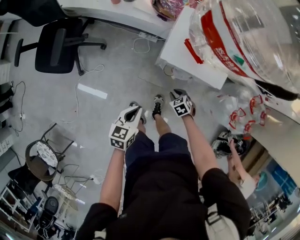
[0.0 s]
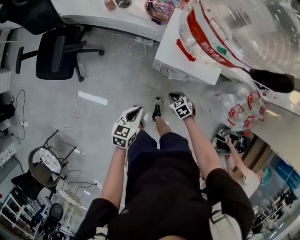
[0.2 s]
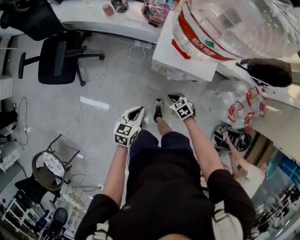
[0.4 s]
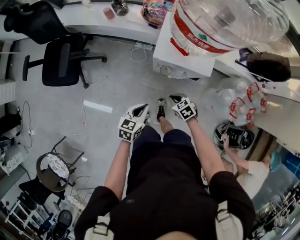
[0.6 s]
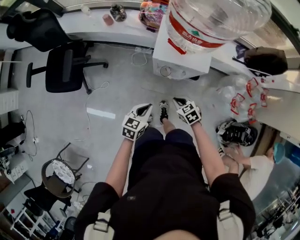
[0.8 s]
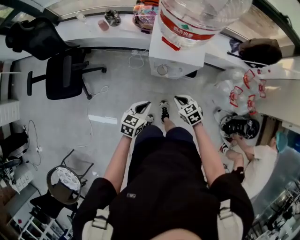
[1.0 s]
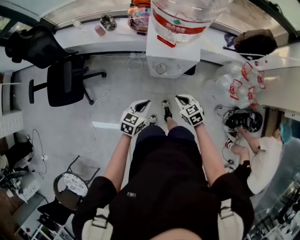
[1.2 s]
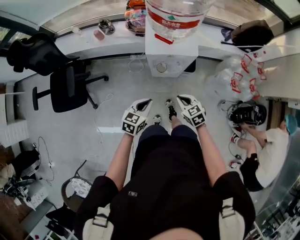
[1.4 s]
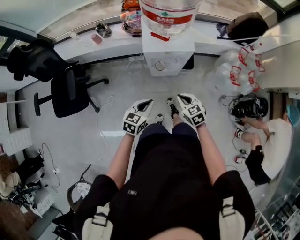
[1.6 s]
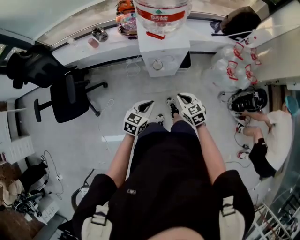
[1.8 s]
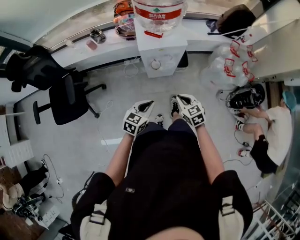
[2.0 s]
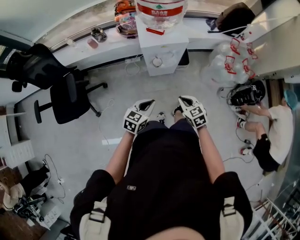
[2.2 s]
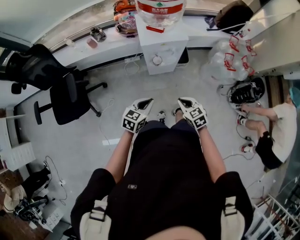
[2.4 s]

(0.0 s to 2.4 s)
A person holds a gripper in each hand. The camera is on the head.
0.0 s - 1.2 s: The right gripper shifts approximately 25 cm upward, and rotates approximately 20 degrees; the left gripper heads upward, covering approximately 10 cm, and swivels approximately 30 degrees.
1.2 s - 2.4 s: Both grippers move backward, some 15 cm.

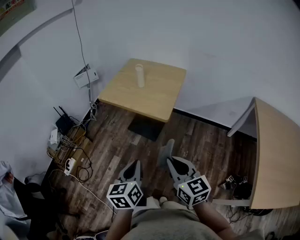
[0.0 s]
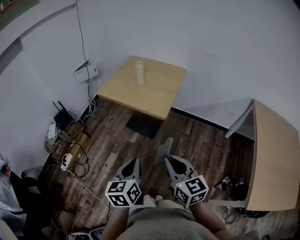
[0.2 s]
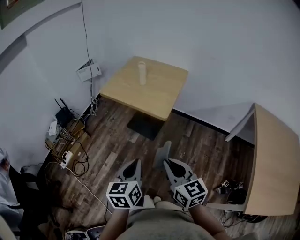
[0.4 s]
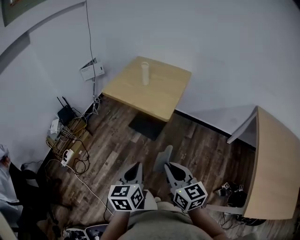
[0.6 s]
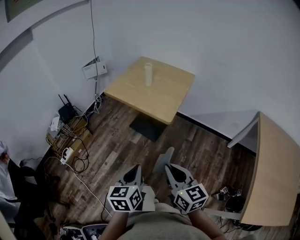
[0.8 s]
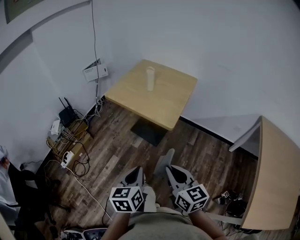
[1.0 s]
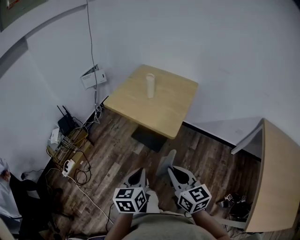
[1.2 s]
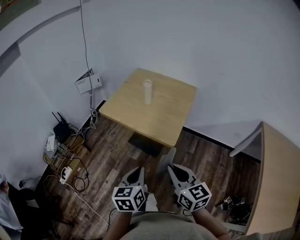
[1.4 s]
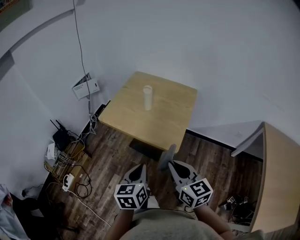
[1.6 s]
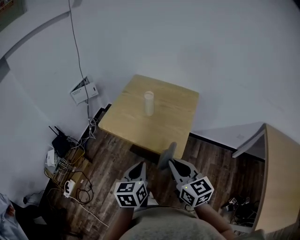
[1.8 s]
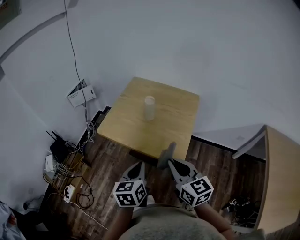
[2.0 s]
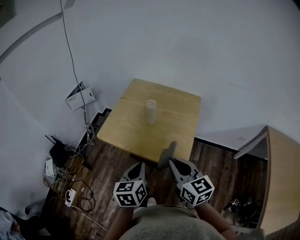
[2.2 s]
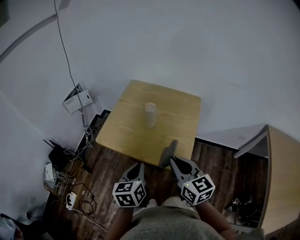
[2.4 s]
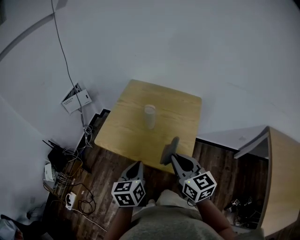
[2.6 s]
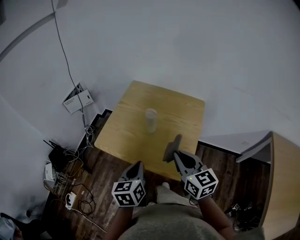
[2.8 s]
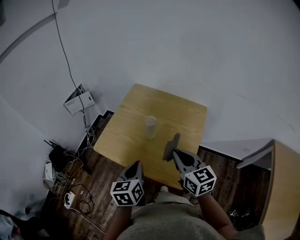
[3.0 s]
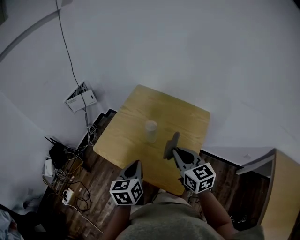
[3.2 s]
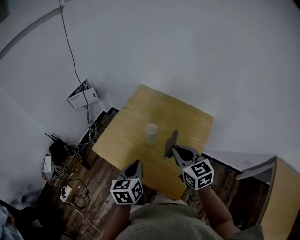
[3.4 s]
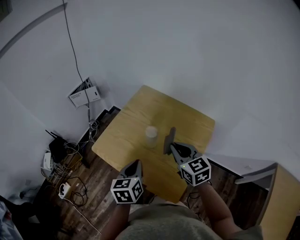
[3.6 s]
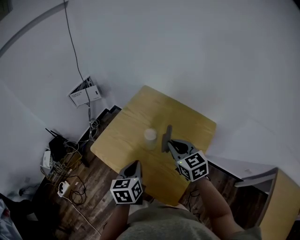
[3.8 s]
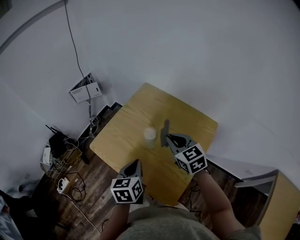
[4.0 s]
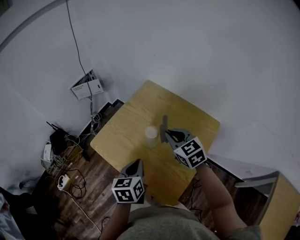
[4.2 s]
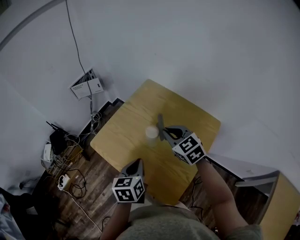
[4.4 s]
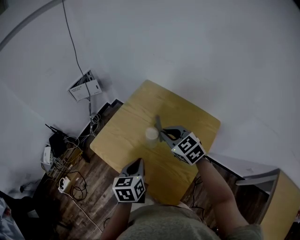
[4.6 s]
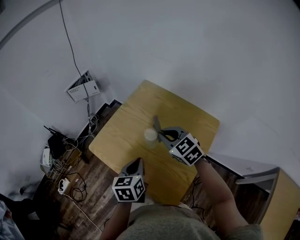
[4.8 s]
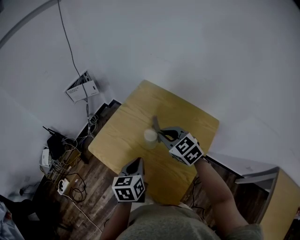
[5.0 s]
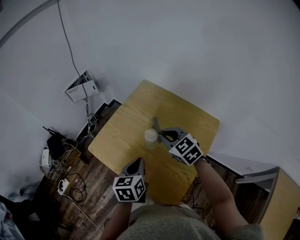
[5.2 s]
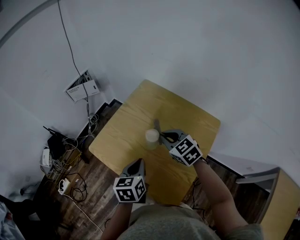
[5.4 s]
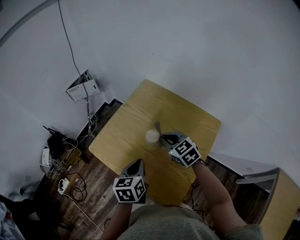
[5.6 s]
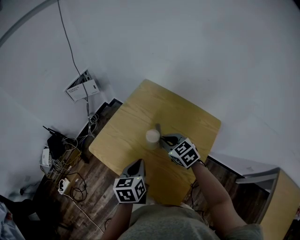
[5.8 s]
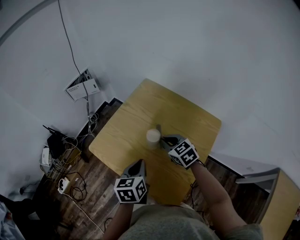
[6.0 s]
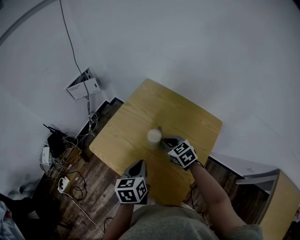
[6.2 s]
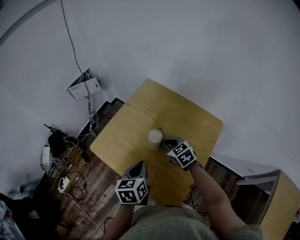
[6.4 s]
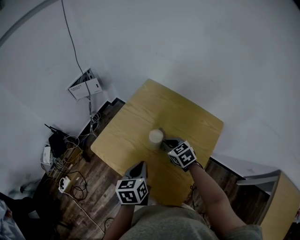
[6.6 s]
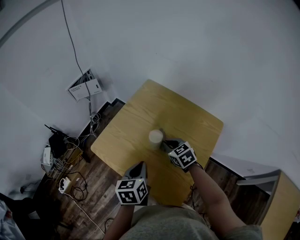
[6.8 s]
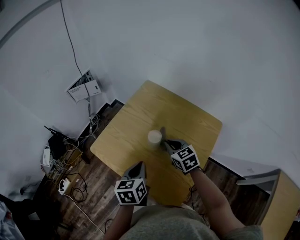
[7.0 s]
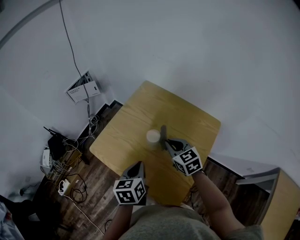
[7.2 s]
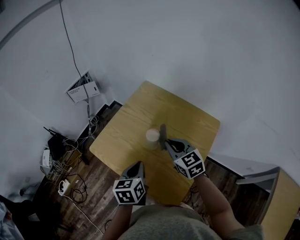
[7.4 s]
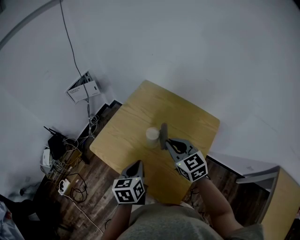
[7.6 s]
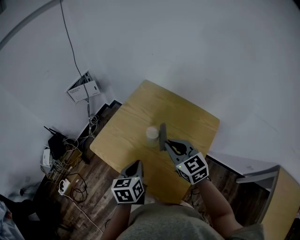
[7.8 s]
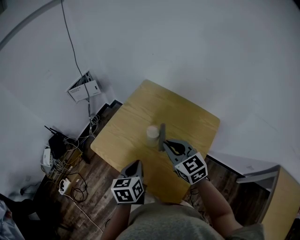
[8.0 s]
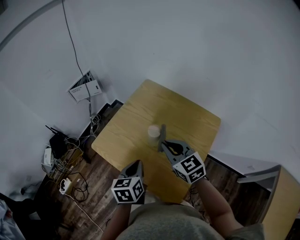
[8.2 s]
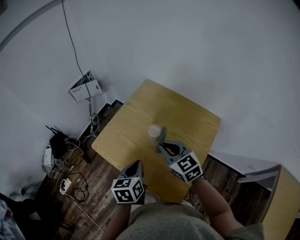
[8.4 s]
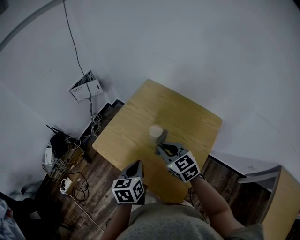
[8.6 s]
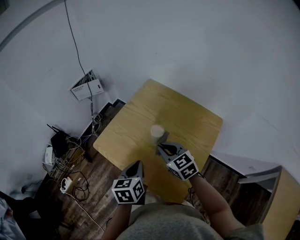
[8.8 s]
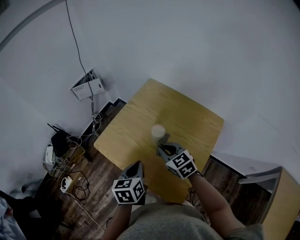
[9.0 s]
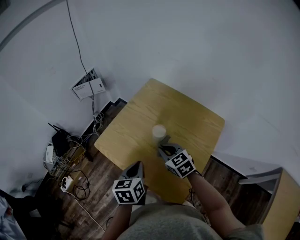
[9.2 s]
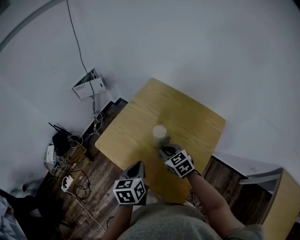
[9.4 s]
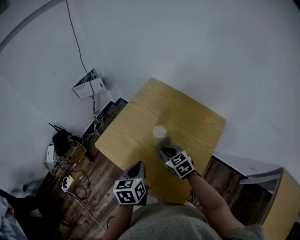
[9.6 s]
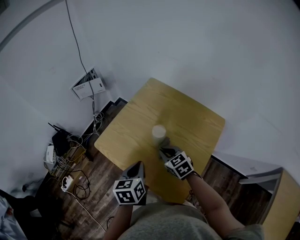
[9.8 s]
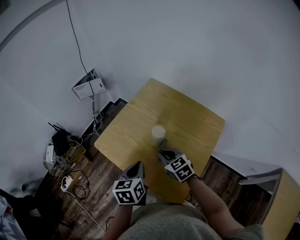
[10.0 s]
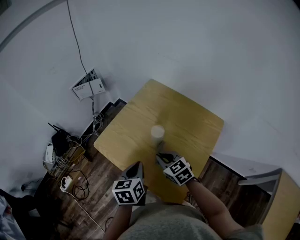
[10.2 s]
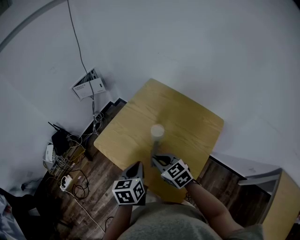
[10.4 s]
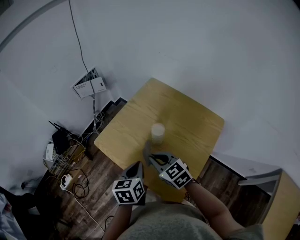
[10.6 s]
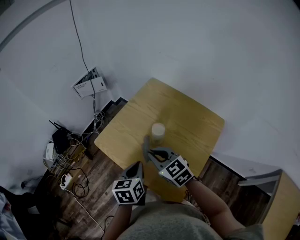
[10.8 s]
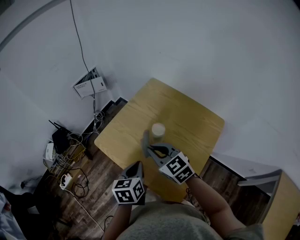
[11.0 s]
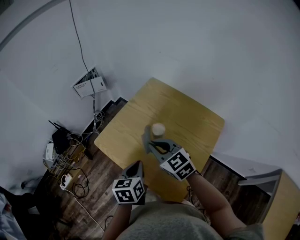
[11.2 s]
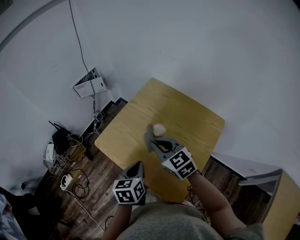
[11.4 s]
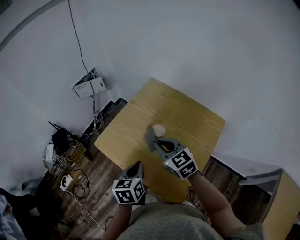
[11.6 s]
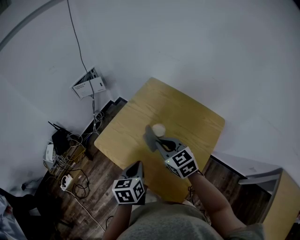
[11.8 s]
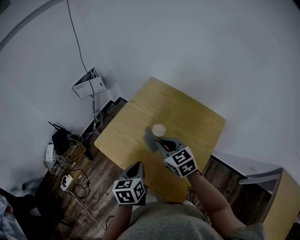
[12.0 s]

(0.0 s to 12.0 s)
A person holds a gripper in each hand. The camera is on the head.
0.0 s - 1.6 s: Both grippers travel together forward, roughly 20 cm.
1.6 s - 3.0 s: The grippers both shift forward by approximately 25 cm.
3.0 s - 4.4 s: The left gripper is displaced forward by about 10 cm; the right gripper moves forward, some 20 cm, and changes its angle by approximately 40 degrees.
4.4 s - 6.0 s: The right gripper goes approximately 10 cm downward.
6.0 s - 7.6 s: The right gripper is displaced upward by about 10 cm.
7.6 s - 9.0 s: The right gripper travels downward and to the left by about 10 cm.
9.0 s - 10.4 s: The right gripper ends up approximately 5 cm from where it was.
10.4 s - 12.0 s: The right gripper heads forward, covering approximately 5 cm.

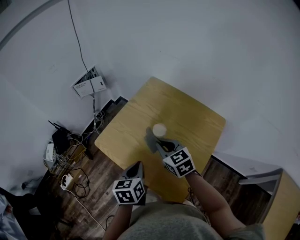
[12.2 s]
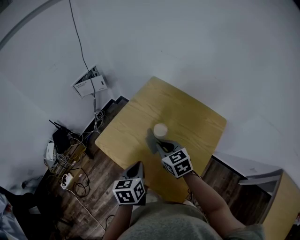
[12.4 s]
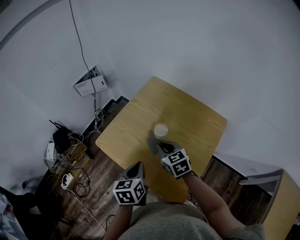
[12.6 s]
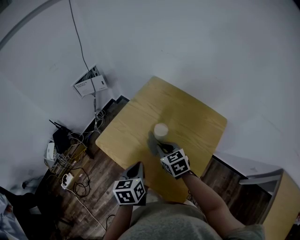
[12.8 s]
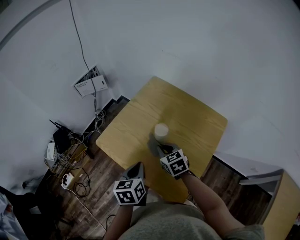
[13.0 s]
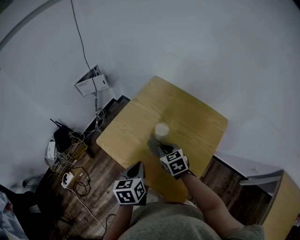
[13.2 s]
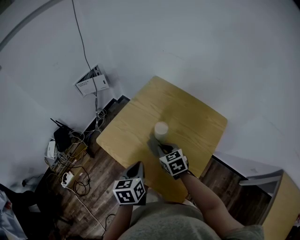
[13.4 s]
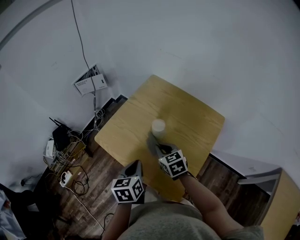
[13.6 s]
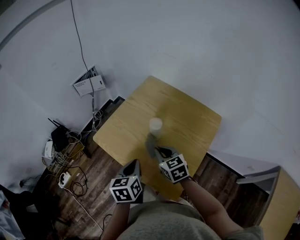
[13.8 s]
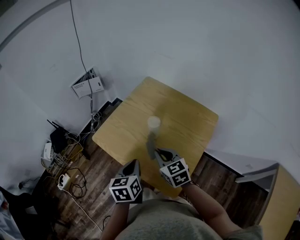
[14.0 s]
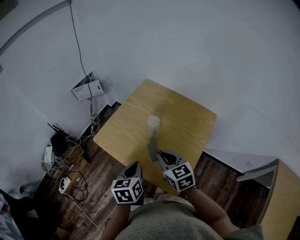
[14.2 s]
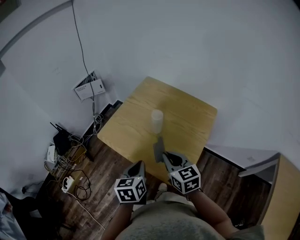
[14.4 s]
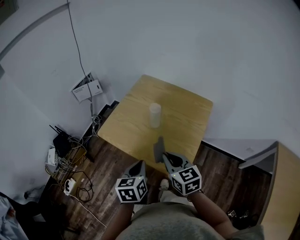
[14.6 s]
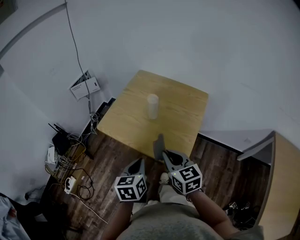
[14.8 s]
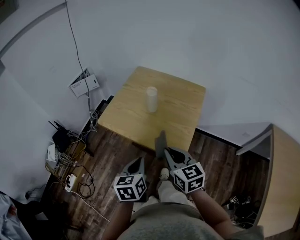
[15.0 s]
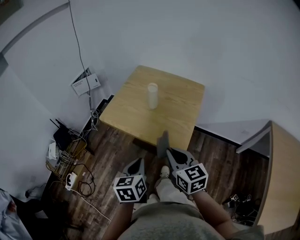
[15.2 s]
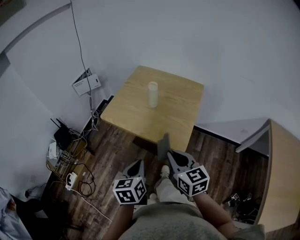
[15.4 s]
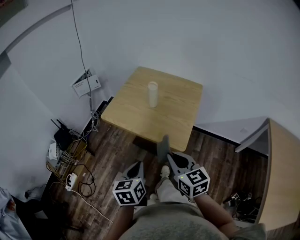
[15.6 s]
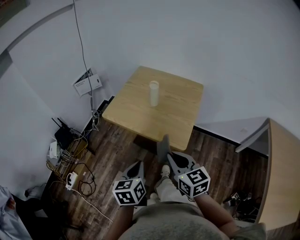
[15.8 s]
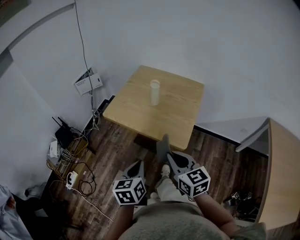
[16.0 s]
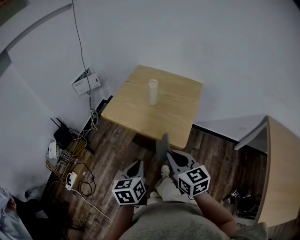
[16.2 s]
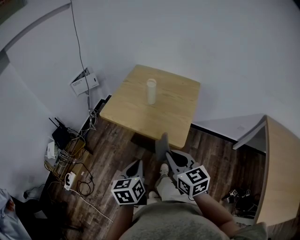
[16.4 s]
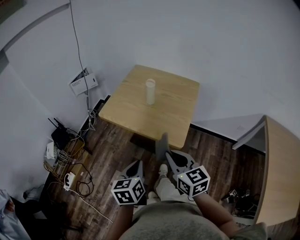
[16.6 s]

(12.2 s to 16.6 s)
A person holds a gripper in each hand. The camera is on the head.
12.2 s - 13.6 s: The right gripper is displaced downward by roughly 5 cm.
13.6 s - 15.2 s: The left gripper heads backward, covering approximately 20 cm. Meanwhile the right gripper shifts approximately 30 cm backward and upward, and swivels approximately 30 degrees.
15.2 s - 16.6 s: The right gripper is displaced backward by roughly 5 cm. The left gripper moves some 5 cm.

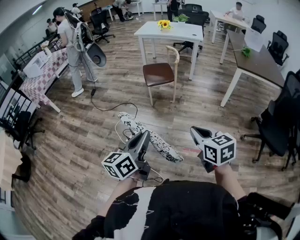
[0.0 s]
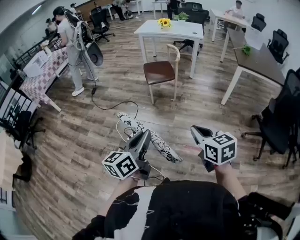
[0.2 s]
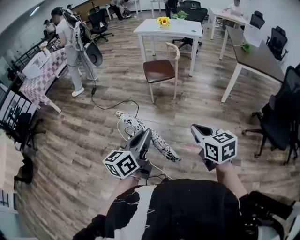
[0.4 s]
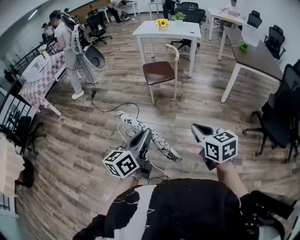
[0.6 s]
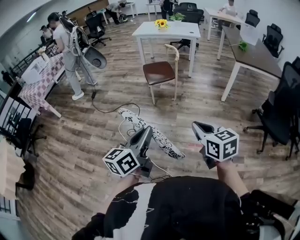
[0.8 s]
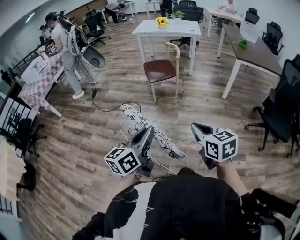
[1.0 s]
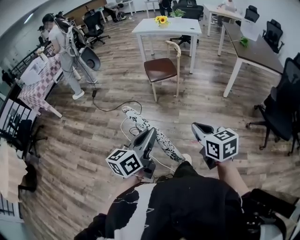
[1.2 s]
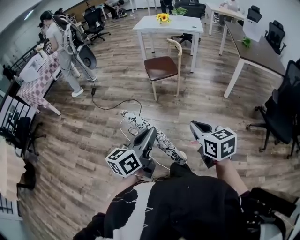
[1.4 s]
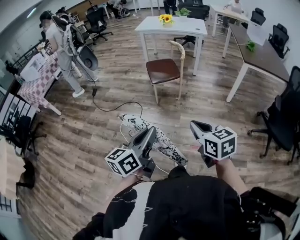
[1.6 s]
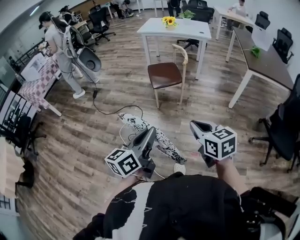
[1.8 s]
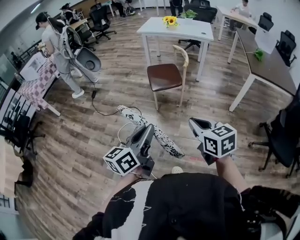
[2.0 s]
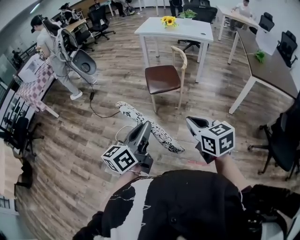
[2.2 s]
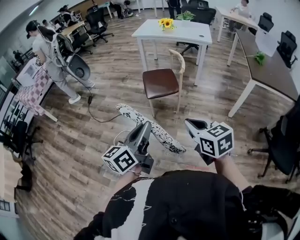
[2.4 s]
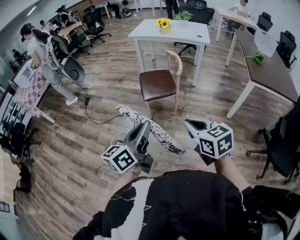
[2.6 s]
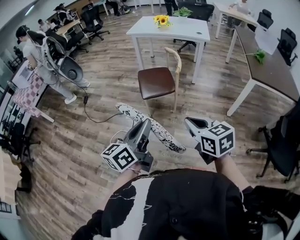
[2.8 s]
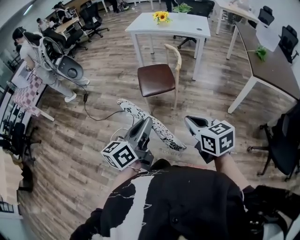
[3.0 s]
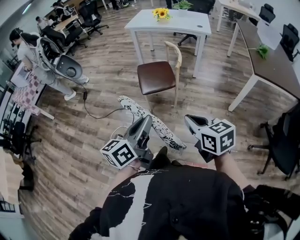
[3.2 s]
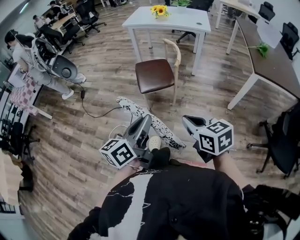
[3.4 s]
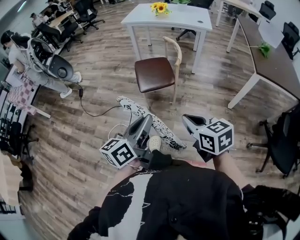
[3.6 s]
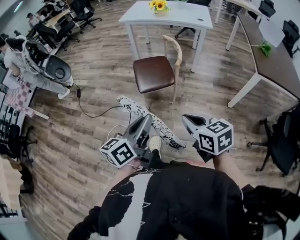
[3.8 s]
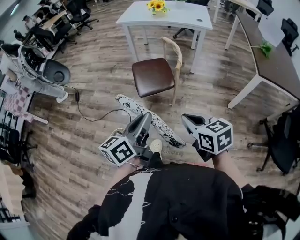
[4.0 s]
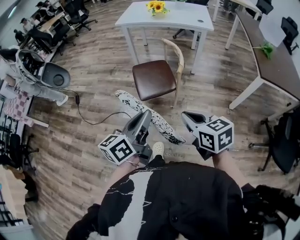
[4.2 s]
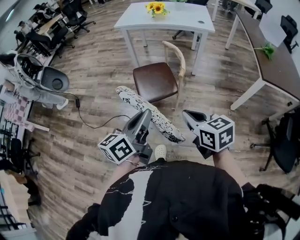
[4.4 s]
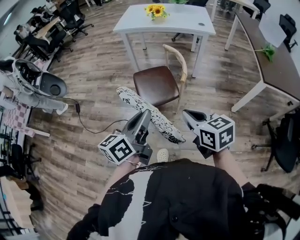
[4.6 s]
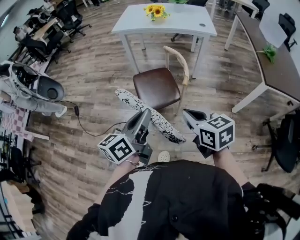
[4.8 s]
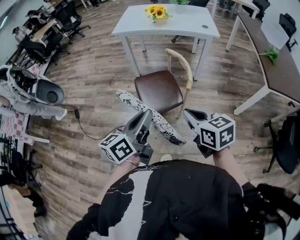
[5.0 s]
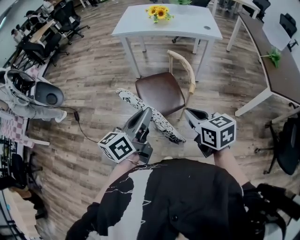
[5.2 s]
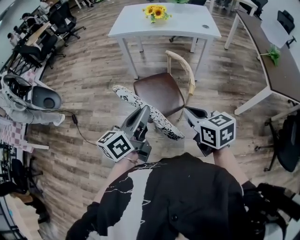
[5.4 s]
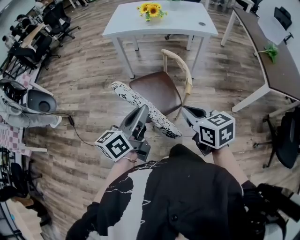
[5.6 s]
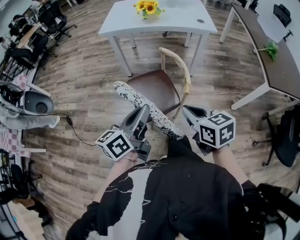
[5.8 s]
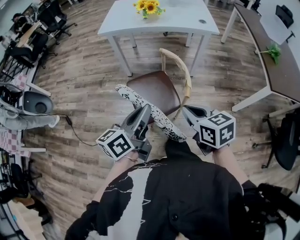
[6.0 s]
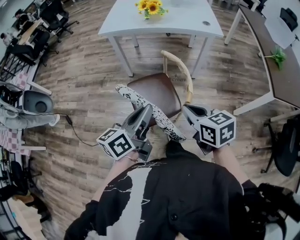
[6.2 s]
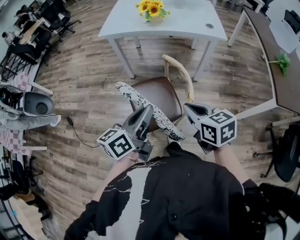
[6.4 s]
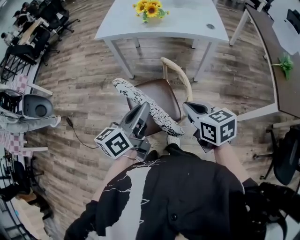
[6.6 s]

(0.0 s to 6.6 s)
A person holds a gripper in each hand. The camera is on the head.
0.0 s - 1.6 s: The right gripper goes approximately 10 cm to the left and forward. Meanwhile the left gripper moves forward and to the left, about 5 cm.
1.6 s - 3.2 s: The grippers both shift forward by approximately 30 cm.
3.2 s - 5.0 s: Both grippers move forward, roughly 30 cm.
5.0 s - 6.6 s: Both grippers travel together forward, some 25 cm.
